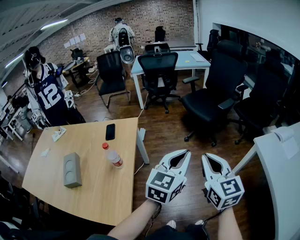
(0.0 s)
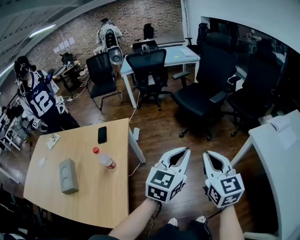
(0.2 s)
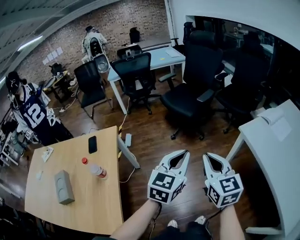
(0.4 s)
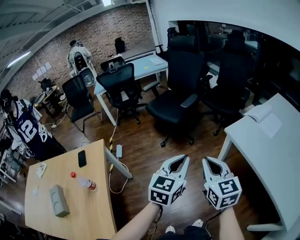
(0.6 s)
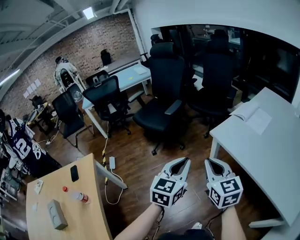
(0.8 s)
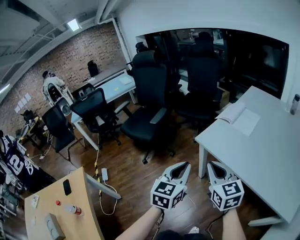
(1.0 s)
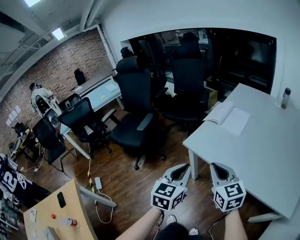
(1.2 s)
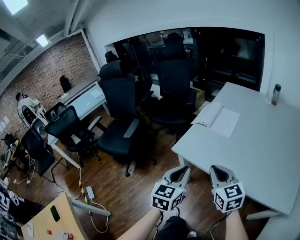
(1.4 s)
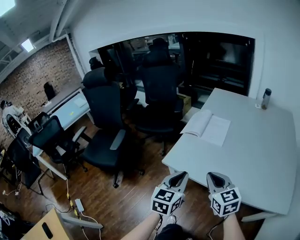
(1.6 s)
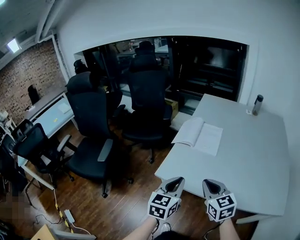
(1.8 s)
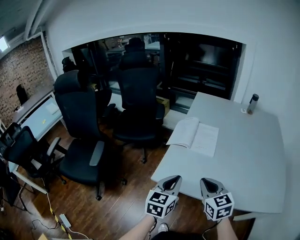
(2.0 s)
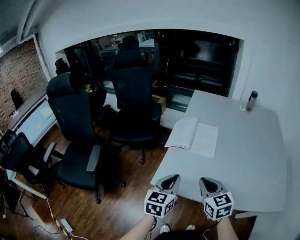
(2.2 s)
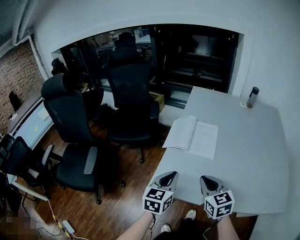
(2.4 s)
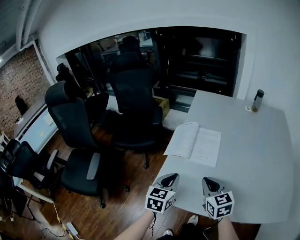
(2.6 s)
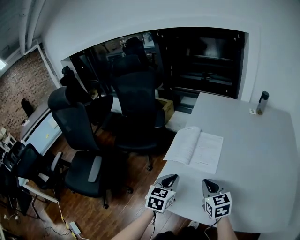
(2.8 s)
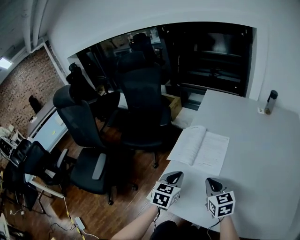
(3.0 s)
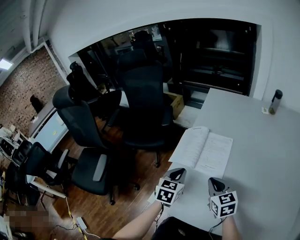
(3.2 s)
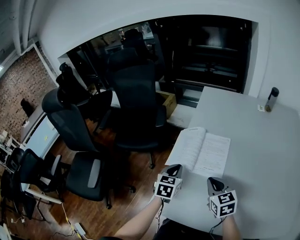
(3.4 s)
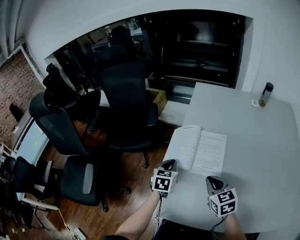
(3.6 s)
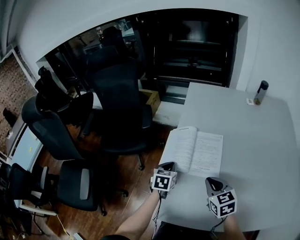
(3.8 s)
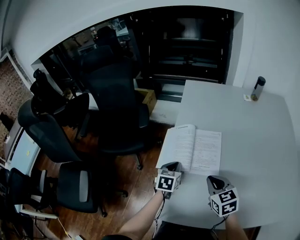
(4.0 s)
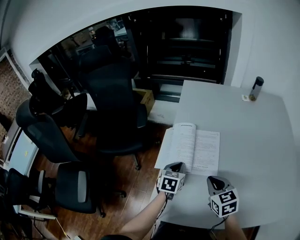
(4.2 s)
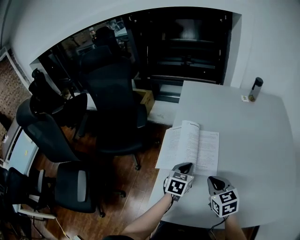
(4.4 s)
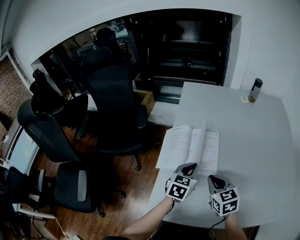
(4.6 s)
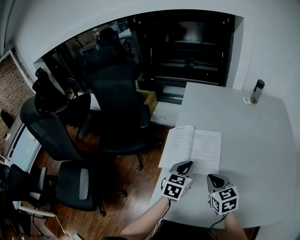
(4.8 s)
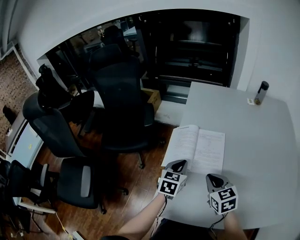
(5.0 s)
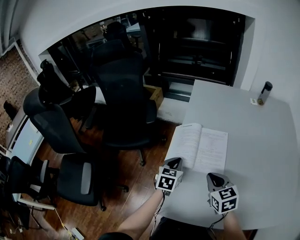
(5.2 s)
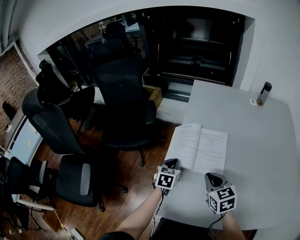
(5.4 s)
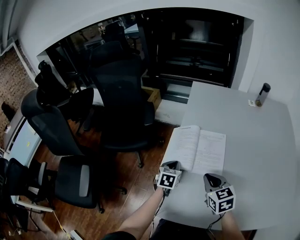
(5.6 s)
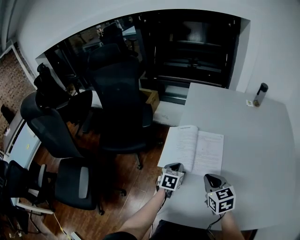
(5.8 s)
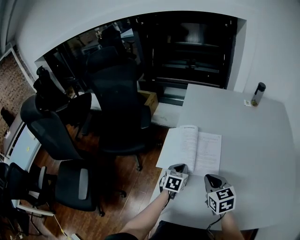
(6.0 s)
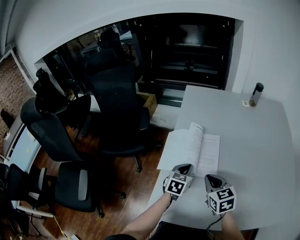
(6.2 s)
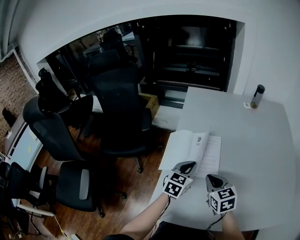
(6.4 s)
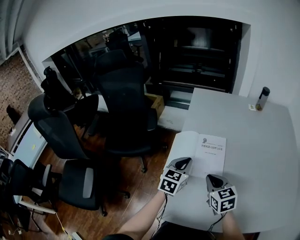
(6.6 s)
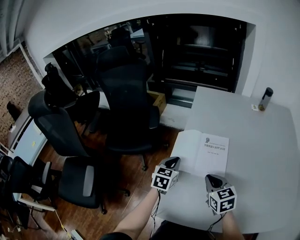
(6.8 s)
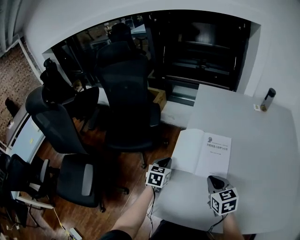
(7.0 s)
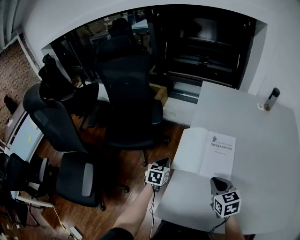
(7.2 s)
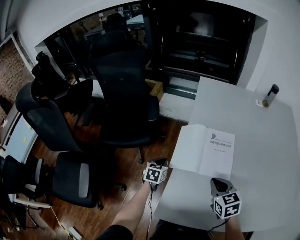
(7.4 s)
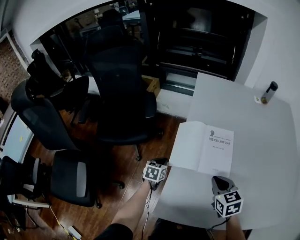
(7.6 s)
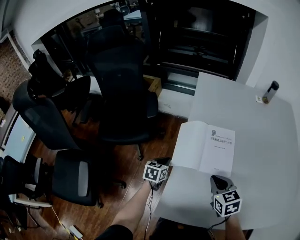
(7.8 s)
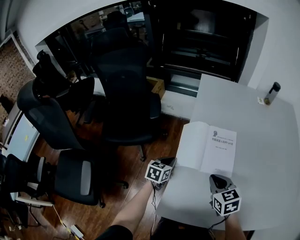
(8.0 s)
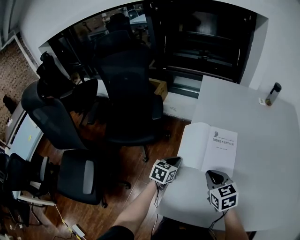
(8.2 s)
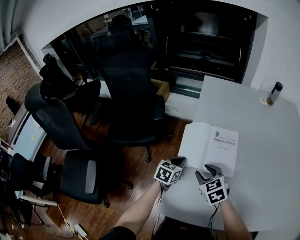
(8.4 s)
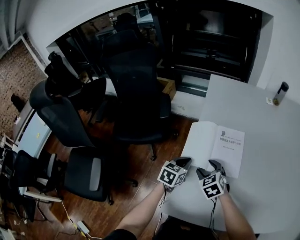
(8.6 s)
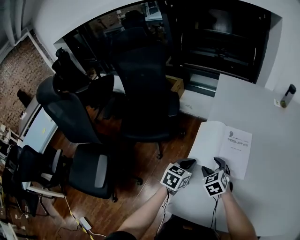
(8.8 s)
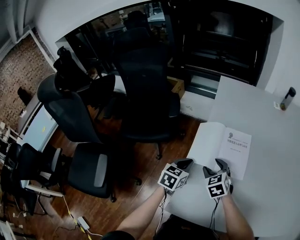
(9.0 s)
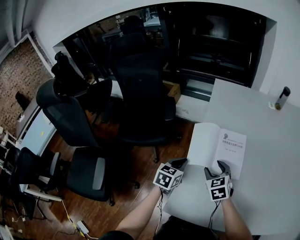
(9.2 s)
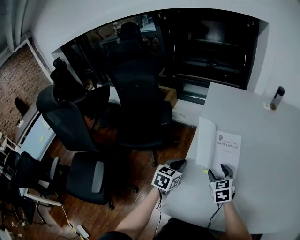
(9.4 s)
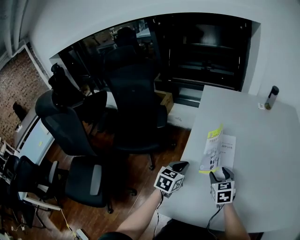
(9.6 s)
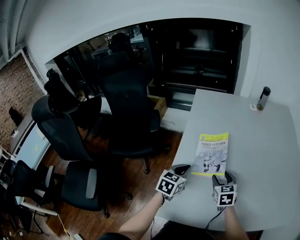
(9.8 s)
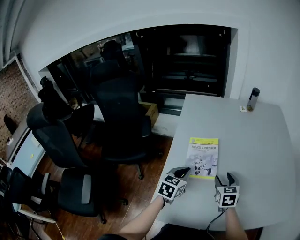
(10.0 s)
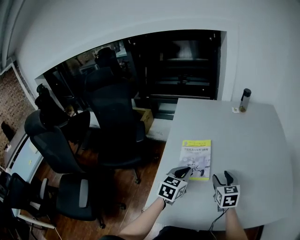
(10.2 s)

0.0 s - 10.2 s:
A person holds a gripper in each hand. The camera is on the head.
0.0 s - 1.4 s: The two grippers travel together, roughly 50 cm. The left gripper turns by about 40 degrees, while the right gripper swivels some 40 degrees.
1.4 s - 3.0 s: Both grippers move forward, roughly 30 cm.
3.0 s - 4.4 s: The left gripper goes roughly 15 cm forward, downward and to the right.
4.4 s - 5.8 s: The left gripper shifts about 10 cm to the left and downward.
5.8 s - 7.2 s: The left gripper goes about 10 cm to the left.
7.2 s - 8.8 s: The left gripper travels to the right and upward by approximately 10 cm; the right gripper is displaced to the left, downward and forward by some 15 cm, turns by about 30 degrees, and opens.
8.8 s - 10.2 s: The right gripper shifts roughly 25 cm to the right, and turns by about 40 degrees. Meanwhile the left gripper shifts about 20 cm to the right and upward.

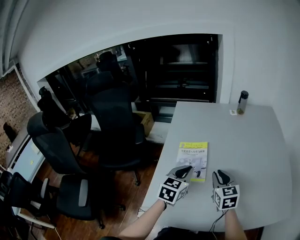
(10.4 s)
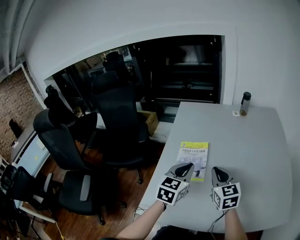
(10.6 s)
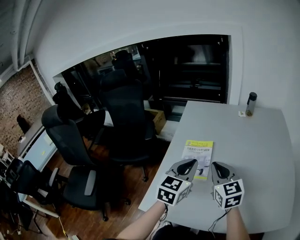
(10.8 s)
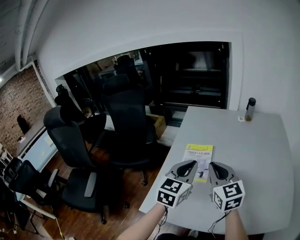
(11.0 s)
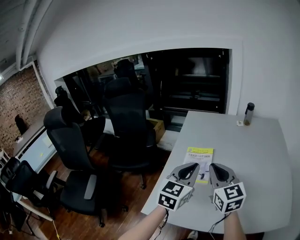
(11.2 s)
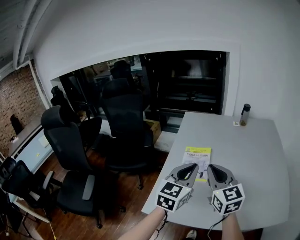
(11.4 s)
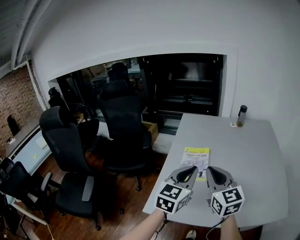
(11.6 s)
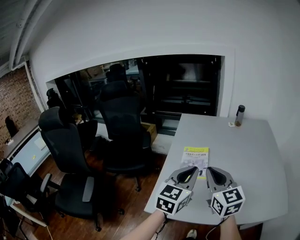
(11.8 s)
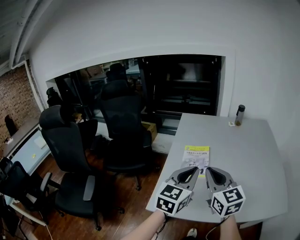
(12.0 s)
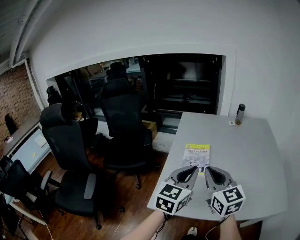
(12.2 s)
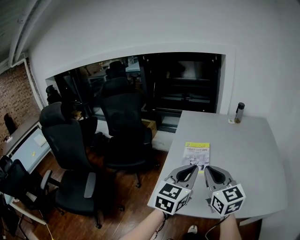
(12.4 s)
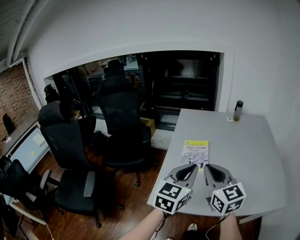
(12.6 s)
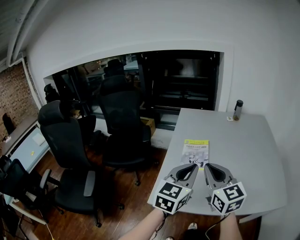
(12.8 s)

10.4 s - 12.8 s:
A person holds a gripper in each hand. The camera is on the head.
10.4 s - 11.6 s: The right gripper travels upward, backward and to the left by some 20 cm, and rotates about 20 degrees, while the left gripper goes approximately 15 cm upward and backward.
11.6 s - 12.8 s: Both grippers move backward, approximately 5 cm.

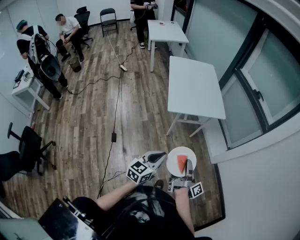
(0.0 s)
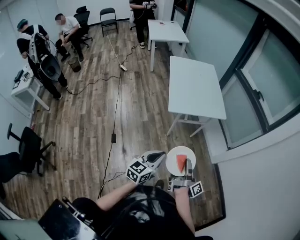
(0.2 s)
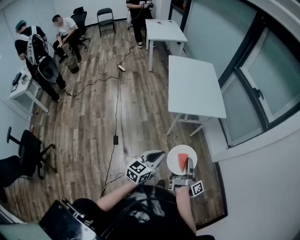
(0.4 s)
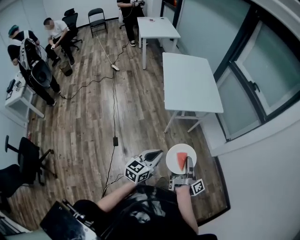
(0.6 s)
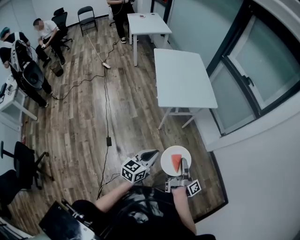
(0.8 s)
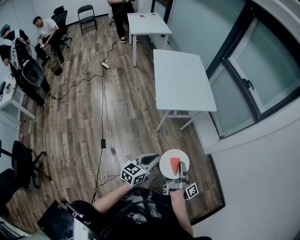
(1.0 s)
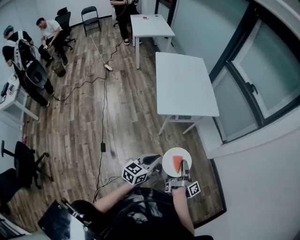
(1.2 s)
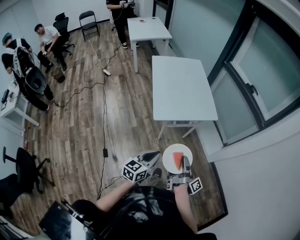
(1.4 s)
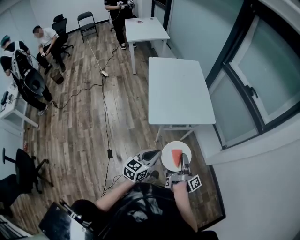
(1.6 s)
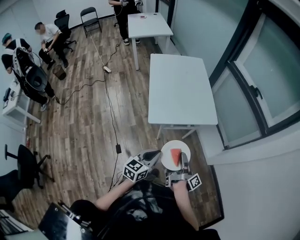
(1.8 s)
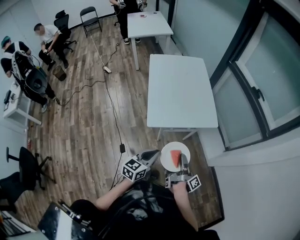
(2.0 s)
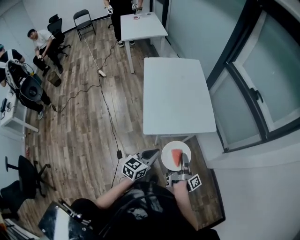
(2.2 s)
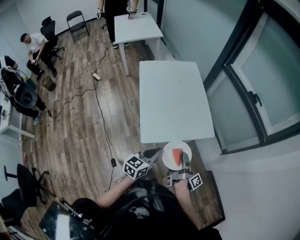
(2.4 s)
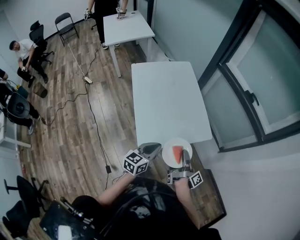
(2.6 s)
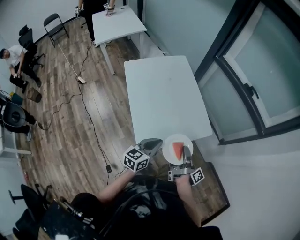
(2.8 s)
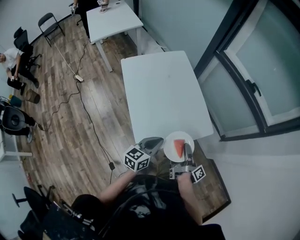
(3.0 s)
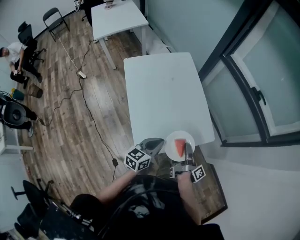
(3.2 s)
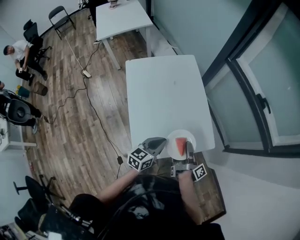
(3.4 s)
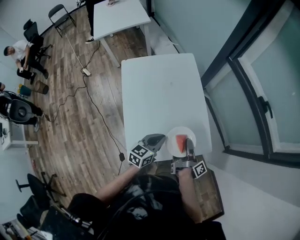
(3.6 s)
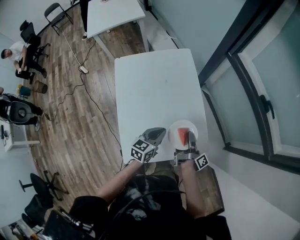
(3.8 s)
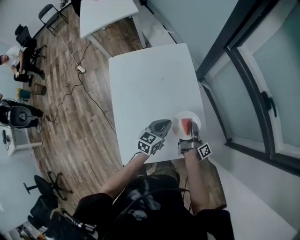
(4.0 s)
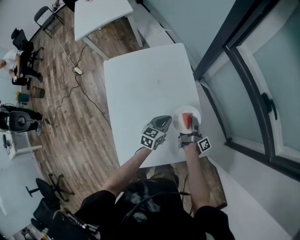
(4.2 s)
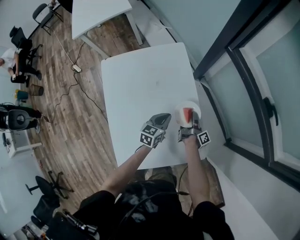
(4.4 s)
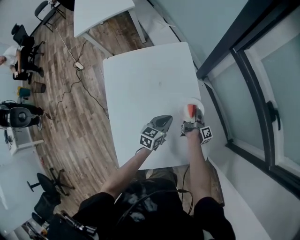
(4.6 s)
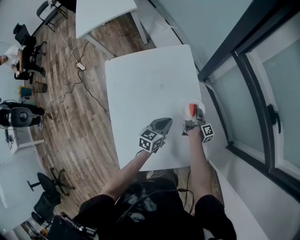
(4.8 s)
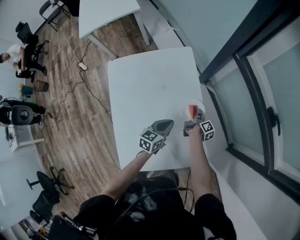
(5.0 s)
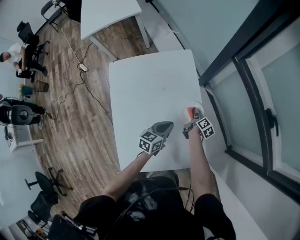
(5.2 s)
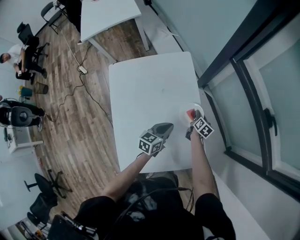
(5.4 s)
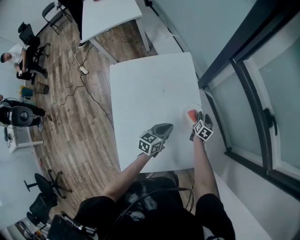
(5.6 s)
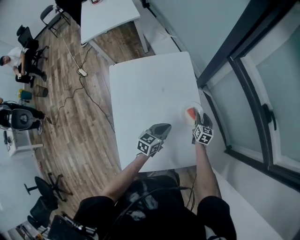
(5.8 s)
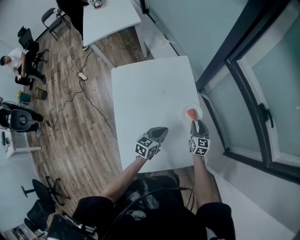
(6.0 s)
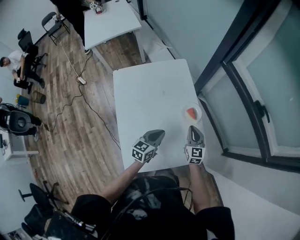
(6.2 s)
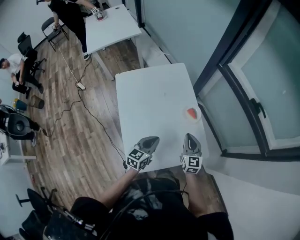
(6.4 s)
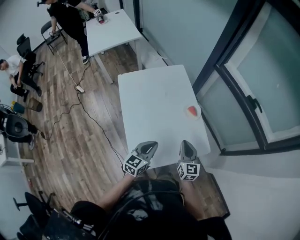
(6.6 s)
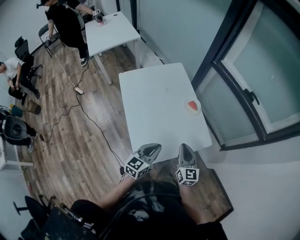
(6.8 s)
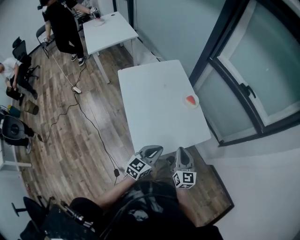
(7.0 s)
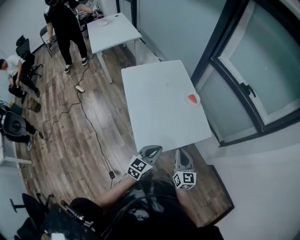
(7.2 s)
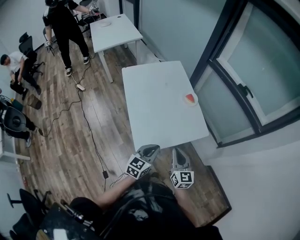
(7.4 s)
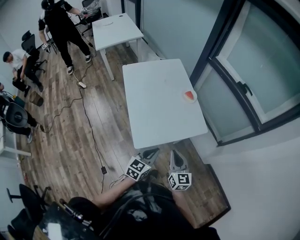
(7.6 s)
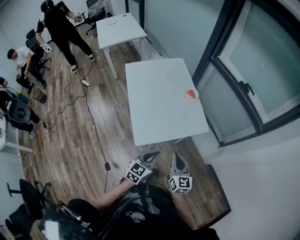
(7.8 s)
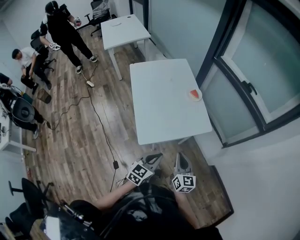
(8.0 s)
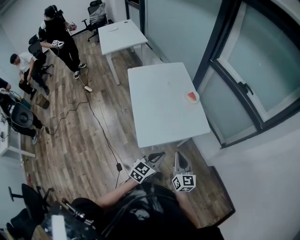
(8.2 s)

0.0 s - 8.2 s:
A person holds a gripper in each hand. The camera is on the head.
0.0 s - 1.6 s: The left gripper ends up roughly 20 cm from where it was.
1.6 s - 3.2 s: The left gripper shifts by approximately 40 cm.
3.2 s - 5.0 s: The left gripper ends up about 35 cm from where it was.
5.0 s - 6.6 s: The left gripper ends up roughly 30 cm from where it was.
6.6 s - 8.2 s: The left gripper ends up some 25 cm from where it was.

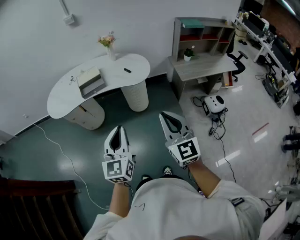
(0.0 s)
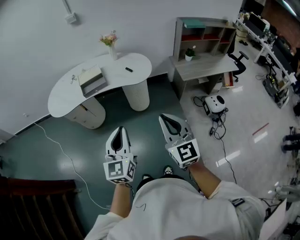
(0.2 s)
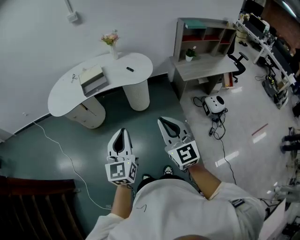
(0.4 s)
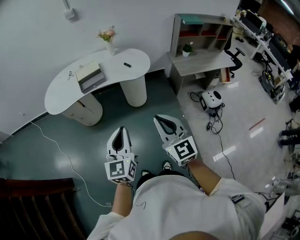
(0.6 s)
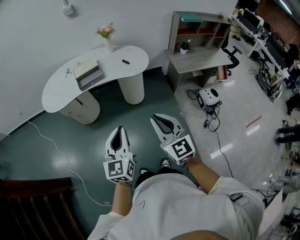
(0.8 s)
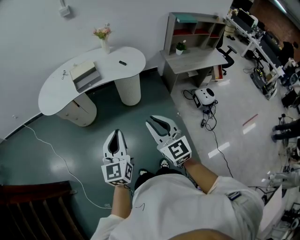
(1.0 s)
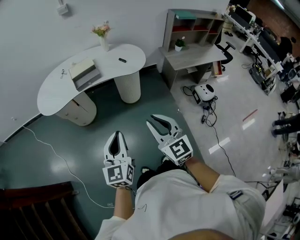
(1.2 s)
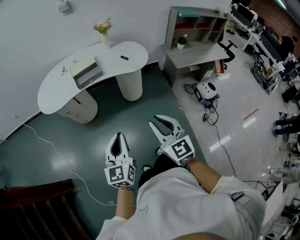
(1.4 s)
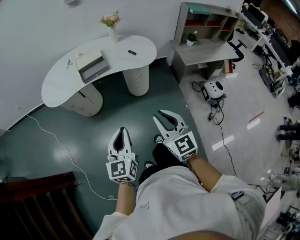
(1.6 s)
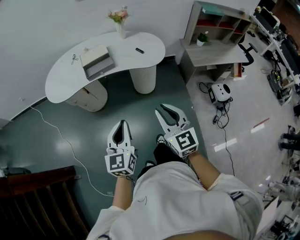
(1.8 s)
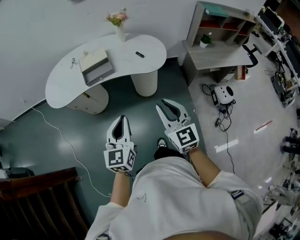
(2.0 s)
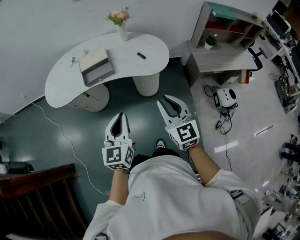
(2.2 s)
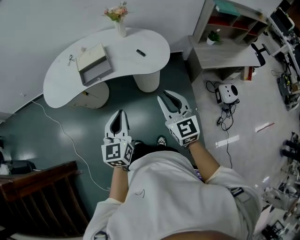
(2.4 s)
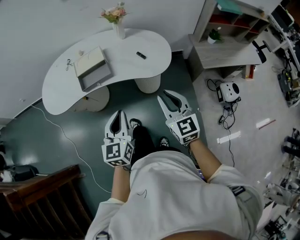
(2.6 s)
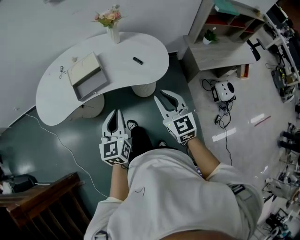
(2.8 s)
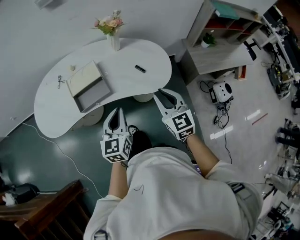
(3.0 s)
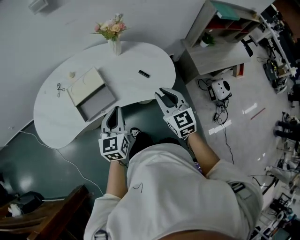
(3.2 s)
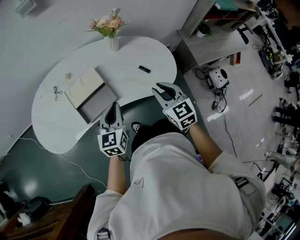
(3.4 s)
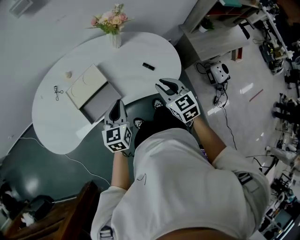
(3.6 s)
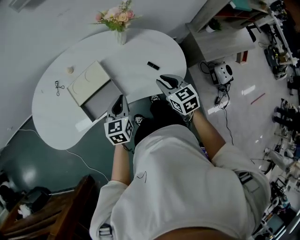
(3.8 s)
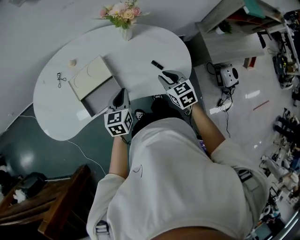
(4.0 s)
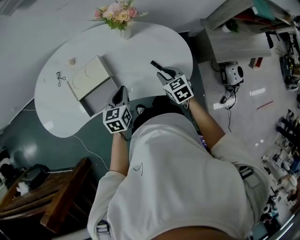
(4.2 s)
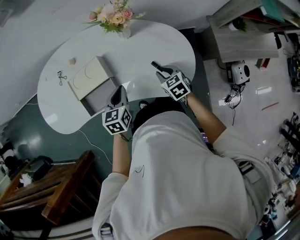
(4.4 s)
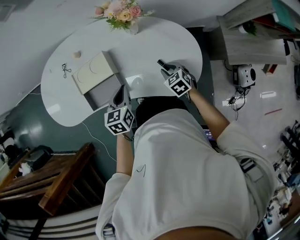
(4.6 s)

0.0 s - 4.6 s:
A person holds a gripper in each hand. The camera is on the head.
0.0 s - 1.6 s: The two grippers go roughly 15 cm to the left and downward.
1.6 s - 3.0 s: Both grippers are carried forward, roughly 40 cm.
3.0 s - 4.6 s: The left gripper shifts some 25 cm forward and downward, and changes its angle by roughly 30 degrees, while the right gripper goes roughly 35 cm downward and forward, and points its fingers about 40 degrees further downward.
